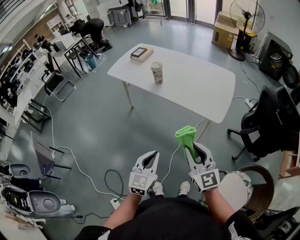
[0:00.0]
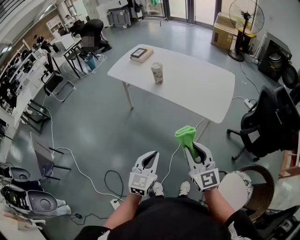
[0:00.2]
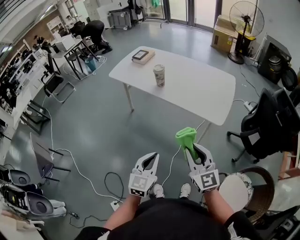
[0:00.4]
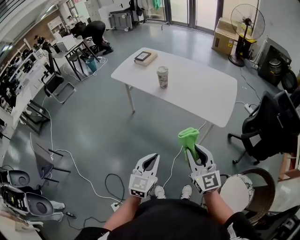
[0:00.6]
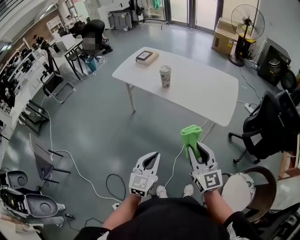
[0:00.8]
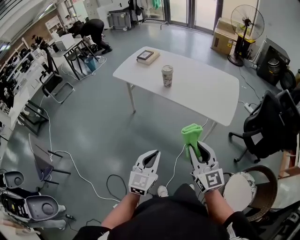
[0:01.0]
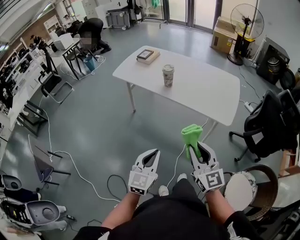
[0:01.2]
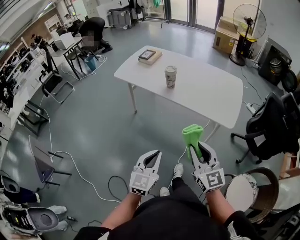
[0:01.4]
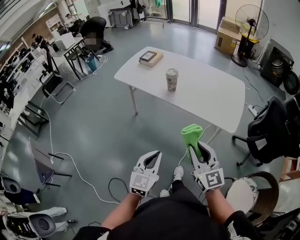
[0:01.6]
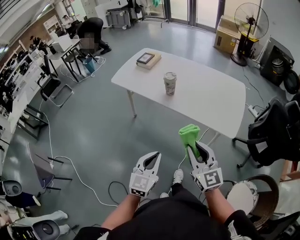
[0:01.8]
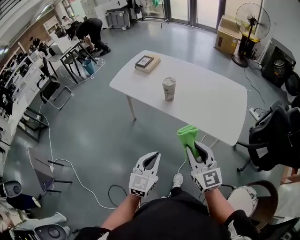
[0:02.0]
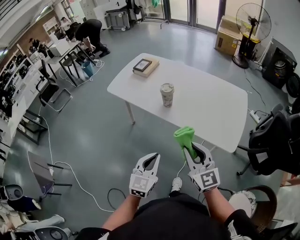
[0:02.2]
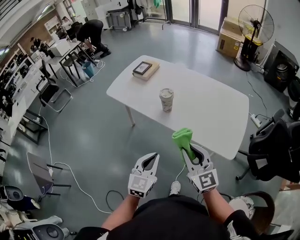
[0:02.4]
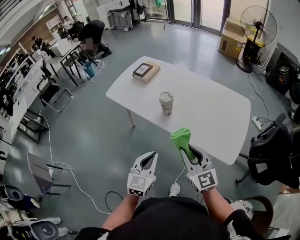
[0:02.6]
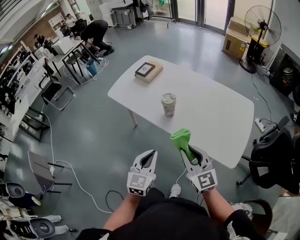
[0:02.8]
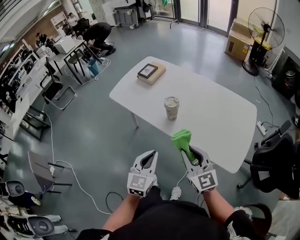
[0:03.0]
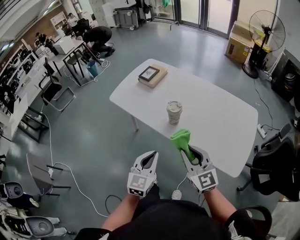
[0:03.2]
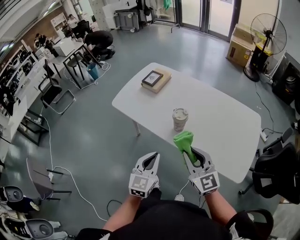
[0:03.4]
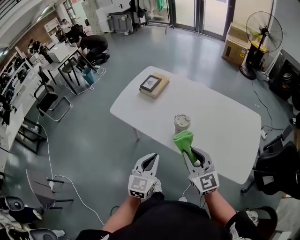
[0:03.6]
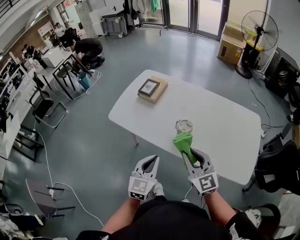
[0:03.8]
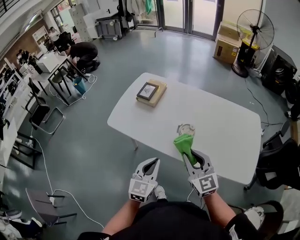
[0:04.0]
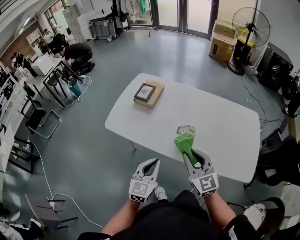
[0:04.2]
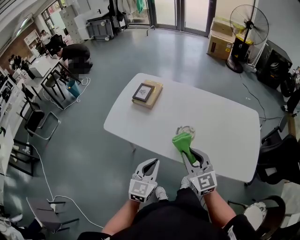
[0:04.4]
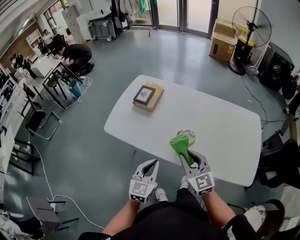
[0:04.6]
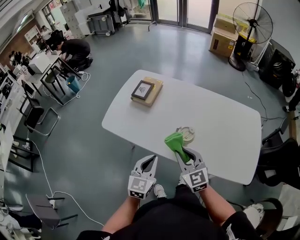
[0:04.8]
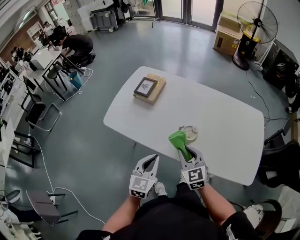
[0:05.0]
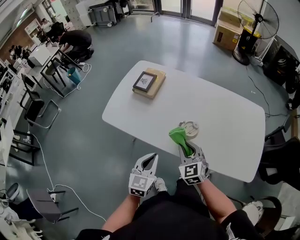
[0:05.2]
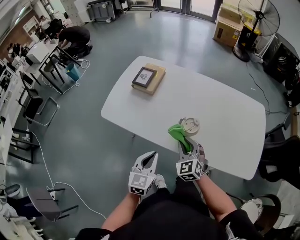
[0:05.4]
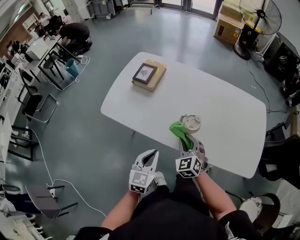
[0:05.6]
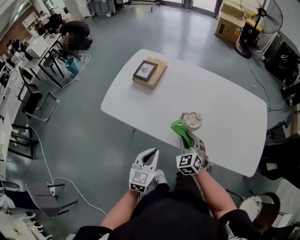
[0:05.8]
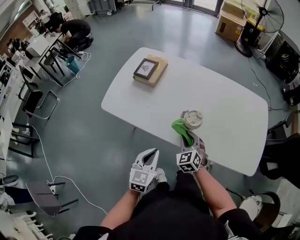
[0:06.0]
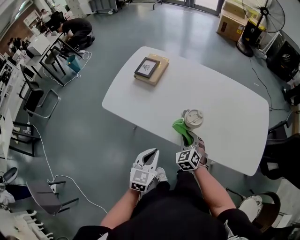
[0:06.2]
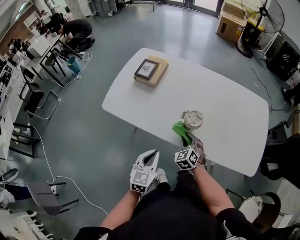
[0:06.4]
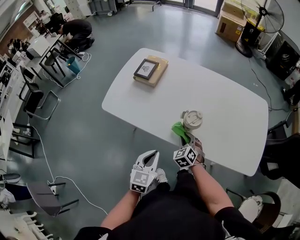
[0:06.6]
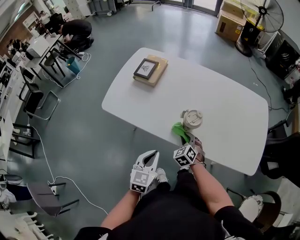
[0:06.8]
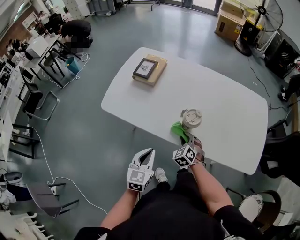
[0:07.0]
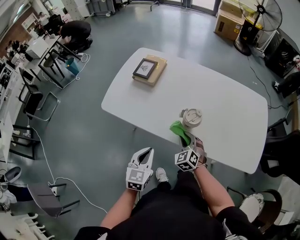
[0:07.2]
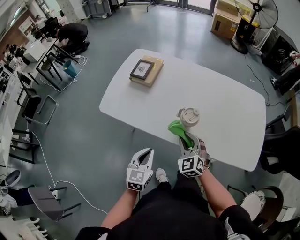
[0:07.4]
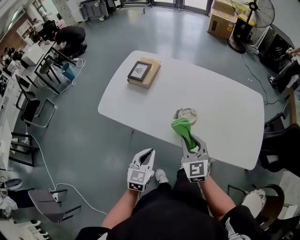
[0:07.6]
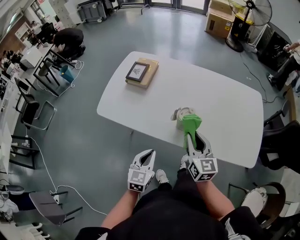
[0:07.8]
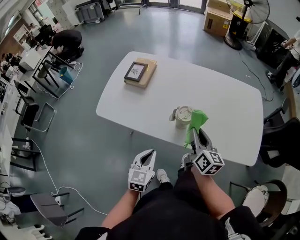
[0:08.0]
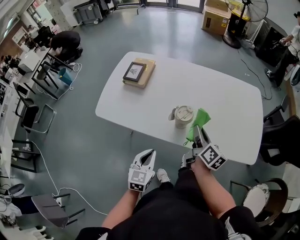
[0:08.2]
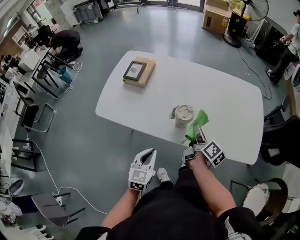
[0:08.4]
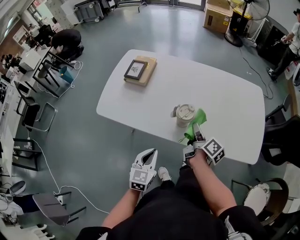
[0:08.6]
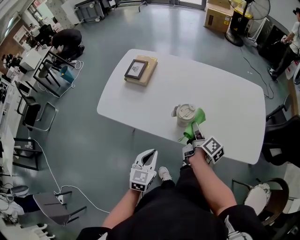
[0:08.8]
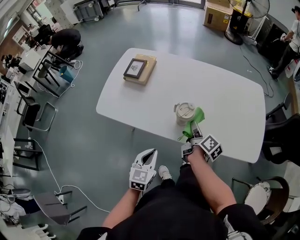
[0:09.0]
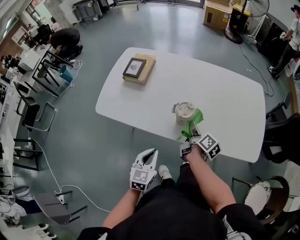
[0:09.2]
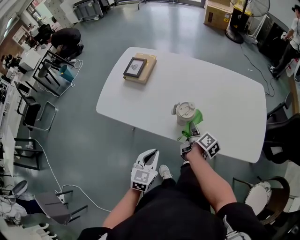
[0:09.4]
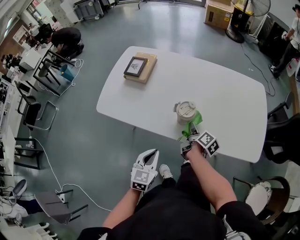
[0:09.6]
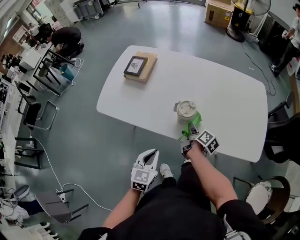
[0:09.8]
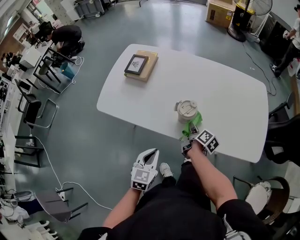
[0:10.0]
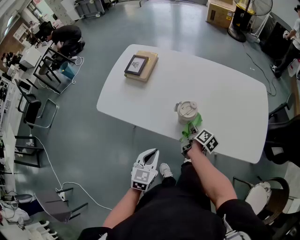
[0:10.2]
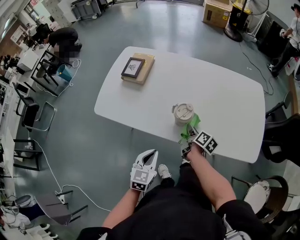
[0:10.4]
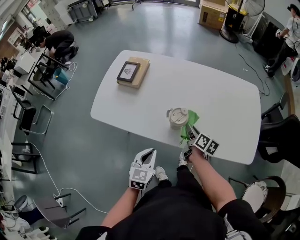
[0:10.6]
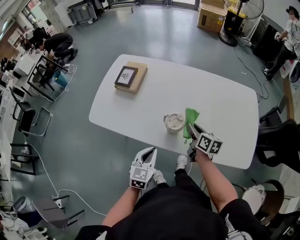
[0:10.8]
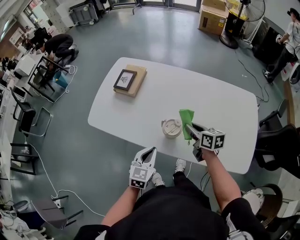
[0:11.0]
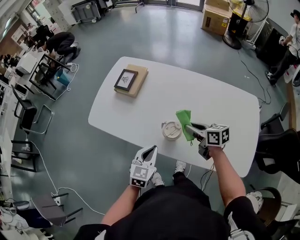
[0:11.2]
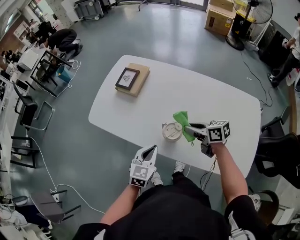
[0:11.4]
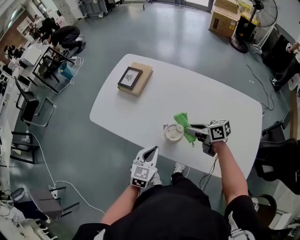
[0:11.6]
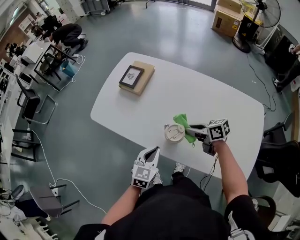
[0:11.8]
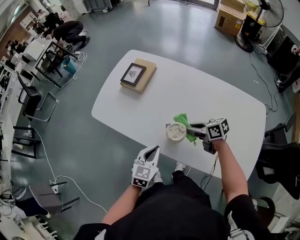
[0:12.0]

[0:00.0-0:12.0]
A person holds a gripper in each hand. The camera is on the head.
0:00.0 to 0:01.6: The two grippers go some 15 cm to the left and forward.
0:01.6 to 0:03.0: Both grippers move forward, about 25 cm.
0:03.0 to 0:04.4: The grippers both shift forward and to the left by some 20 cm.
0:04.4 to 0:06.0: The left gripper is displaced downward by about 5 cm. The right gripper shifts approximately 20 cm downward, and changes its angle by roughly 30 degrees.
0:06.0 to 0:07.6: The right gripper shifts approximately 10 cm upward, and changes its angle by some 20 degrees.
0:07.6 to 0:09.0: The right gripper travels downward, to the right and forward by roughly 10 cm, and twists some 90 degrees clockwise, seen from behind.
0:09.0 to 0:10.4: The right gripper heads downward, covering some 10 cm.
0:10.4 to 0:12.0: The left gripper changes place by some 10 cm; the right gripper heads upward, covering about 10 cm, and changes its angle by about 70 degrees.

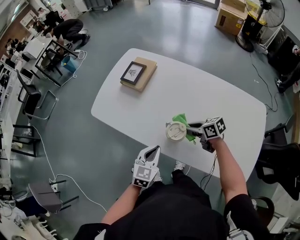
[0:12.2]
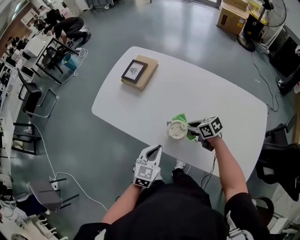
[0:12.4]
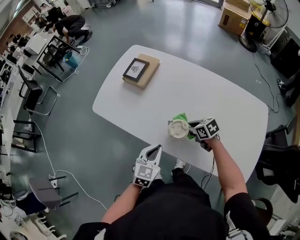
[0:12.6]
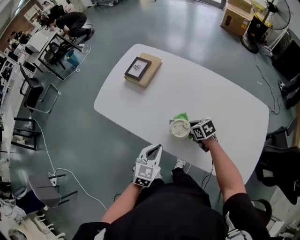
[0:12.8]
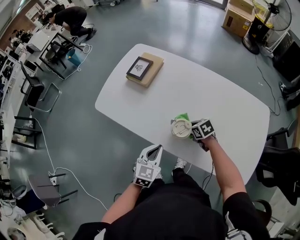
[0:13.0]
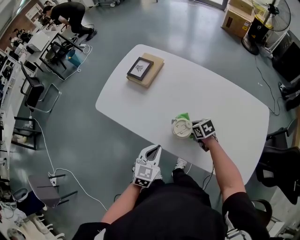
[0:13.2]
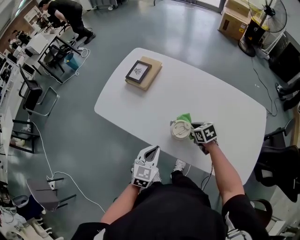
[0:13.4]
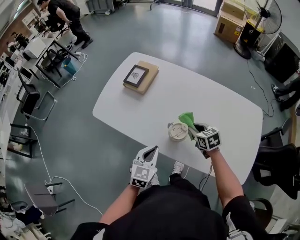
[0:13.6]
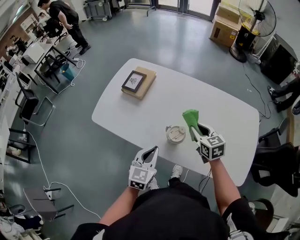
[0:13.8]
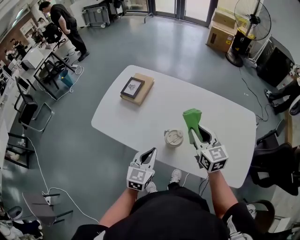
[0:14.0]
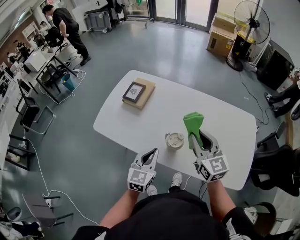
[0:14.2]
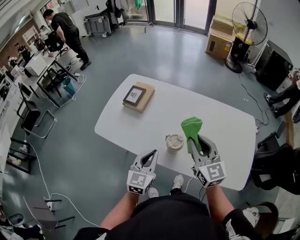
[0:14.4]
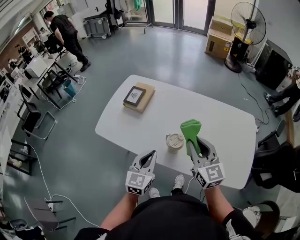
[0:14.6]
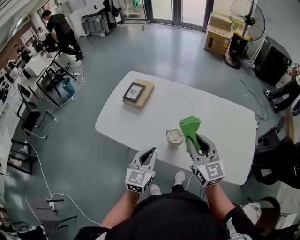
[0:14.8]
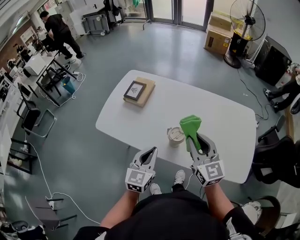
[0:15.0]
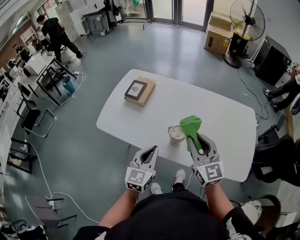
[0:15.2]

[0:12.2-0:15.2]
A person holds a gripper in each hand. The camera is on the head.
0:12.2 to 0:13.8: The left gripper heads upward, covering approximately 5 cm. Meanwhile the right gripper goes about 10 cm upward, and turns by roughly 40 degrees.
0:13.8 to 0:15.2: The left gripper is displaced upward by about 5 cm, while the right gripper heads upward and backward, covering roughly 20 cm, and rotates roughly 30 degrees.

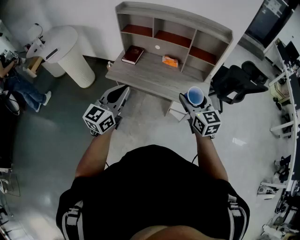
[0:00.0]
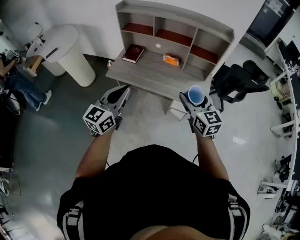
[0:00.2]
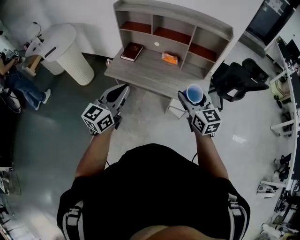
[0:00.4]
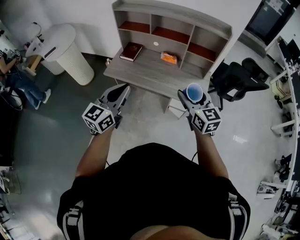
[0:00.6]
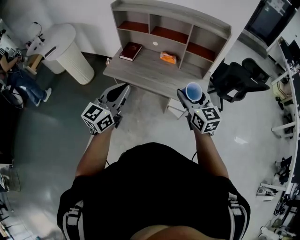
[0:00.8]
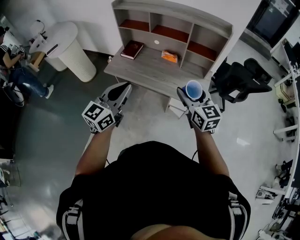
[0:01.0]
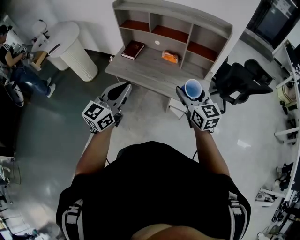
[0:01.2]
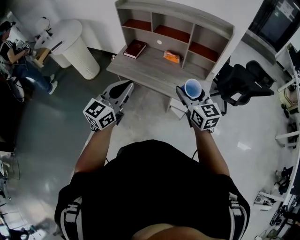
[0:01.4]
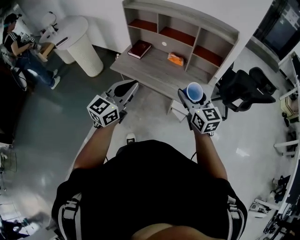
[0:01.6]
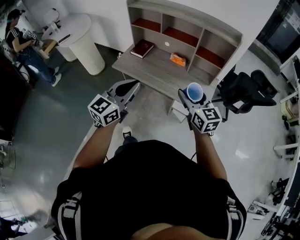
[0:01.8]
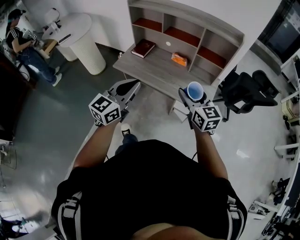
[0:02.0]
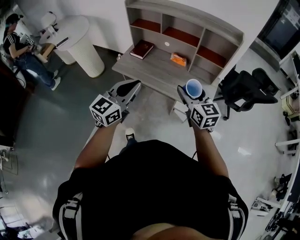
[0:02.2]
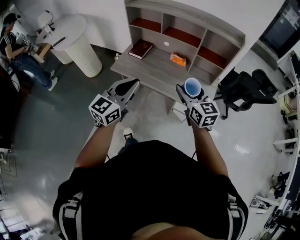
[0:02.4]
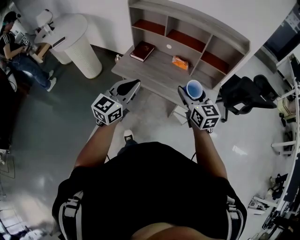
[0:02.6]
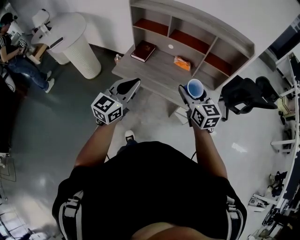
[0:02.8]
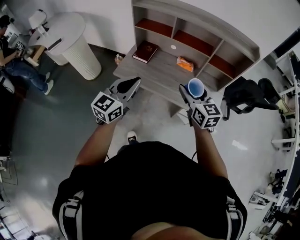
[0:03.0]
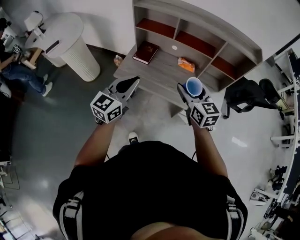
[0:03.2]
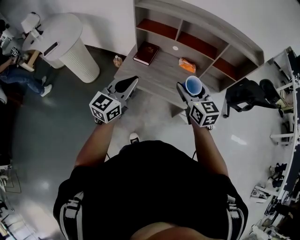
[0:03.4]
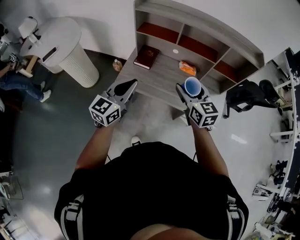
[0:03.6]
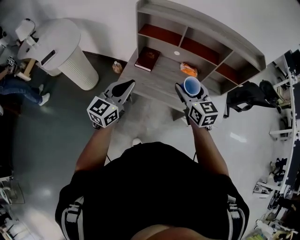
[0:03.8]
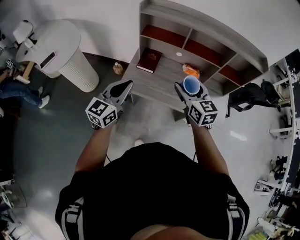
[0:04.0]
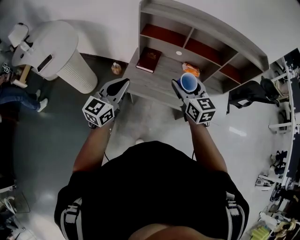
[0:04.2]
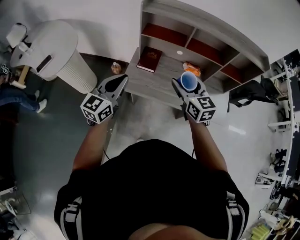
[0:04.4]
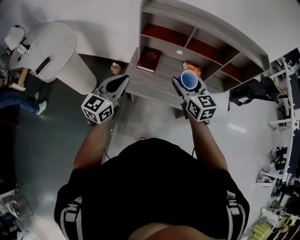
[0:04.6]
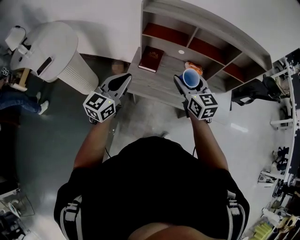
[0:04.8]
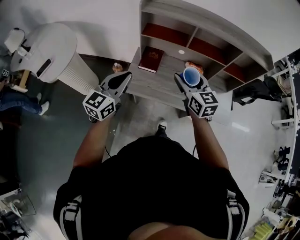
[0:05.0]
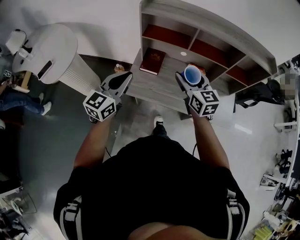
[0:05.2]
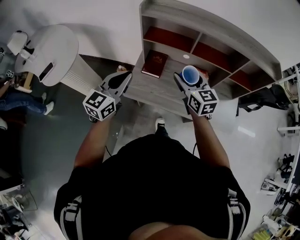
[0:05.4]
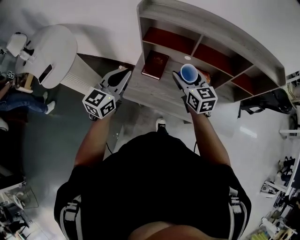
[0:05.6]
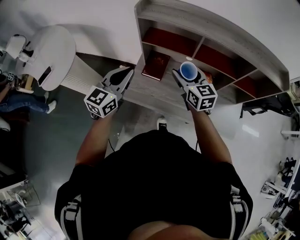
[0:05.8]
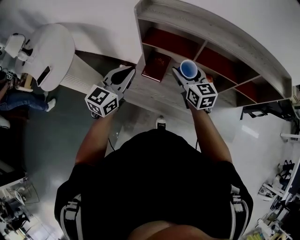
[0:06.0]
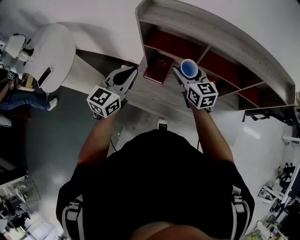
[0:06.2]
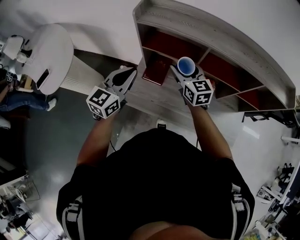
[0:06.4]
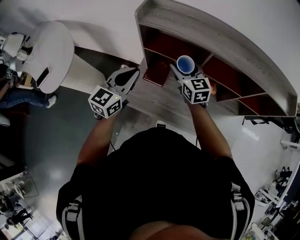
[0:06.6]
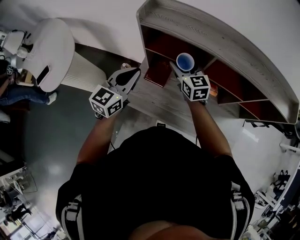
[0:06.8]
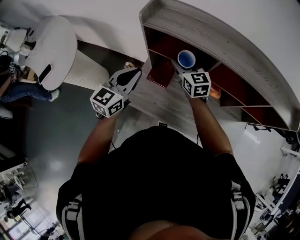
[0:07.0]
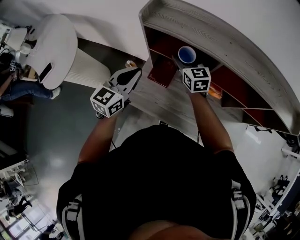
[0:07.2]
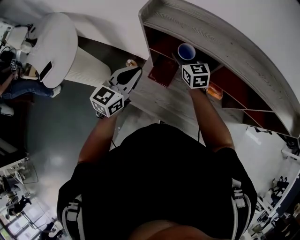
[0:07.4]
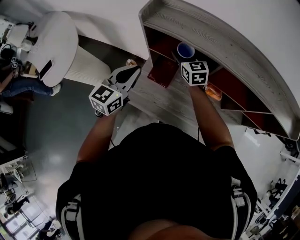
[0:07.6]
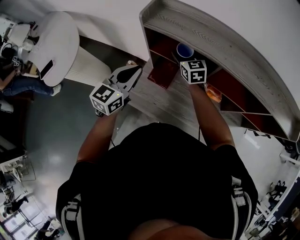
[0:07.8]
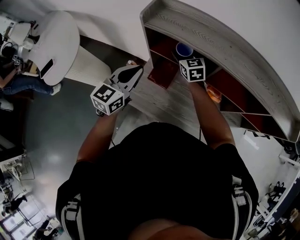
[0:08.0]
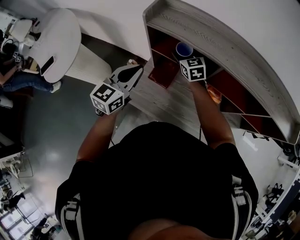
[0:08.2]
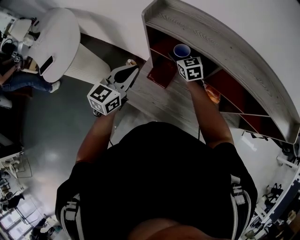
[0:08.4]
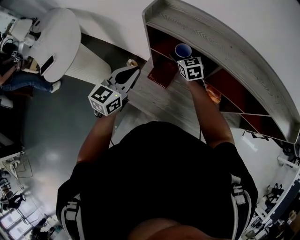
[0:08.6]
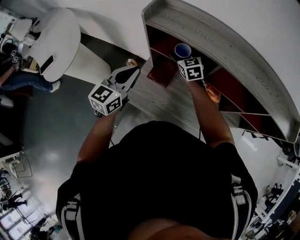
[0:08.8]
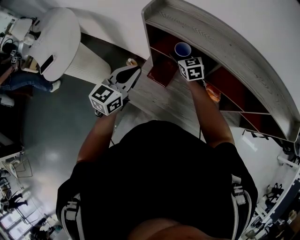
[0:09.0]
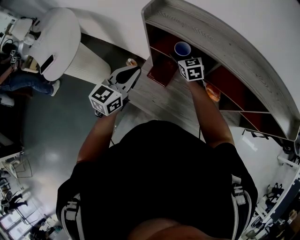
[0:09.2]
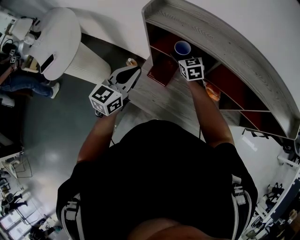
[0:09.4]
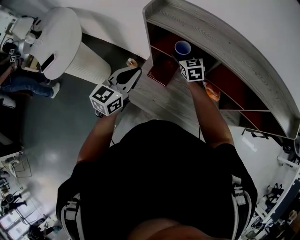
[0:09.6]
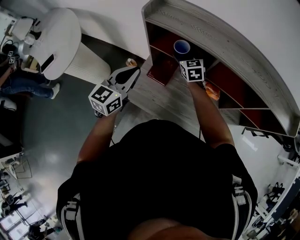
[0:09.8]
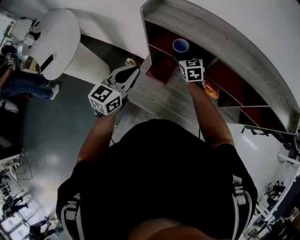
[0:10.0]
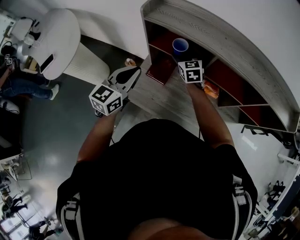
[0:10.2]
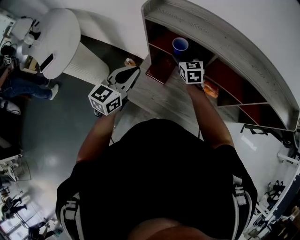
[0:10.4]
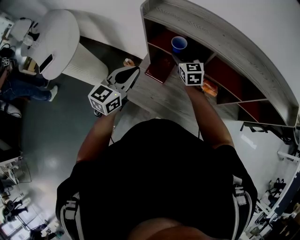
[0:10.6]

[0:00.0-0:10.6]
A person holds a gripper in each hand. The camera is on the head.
0:00.0 to 0:01.6: The left gripper moves to the right, approximately 10 cm. Meanwhile the right gripper heads to the right, covering about 5 cm.
0:01.6 to 0:03.0: The two grippers go about 20 cm to the left and forward.
0:03.0 to 0:04.6: Both grippers move to the left and forward, roughly 25 cm.
0:04.6 to 0:06.0: The grippers both shift forward by about 20 cm.
0:06.0 to 0:07.6: The right gripper shifts some 20 cm forward, while the left gripper is displaced forward by some 10 cm.
0:07.6 to 0:09.0: The grippers move only a little.
0:09.0 to 0:10.6: The right gripper moves some 5 cm.
